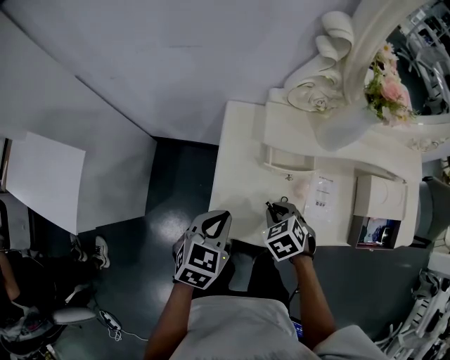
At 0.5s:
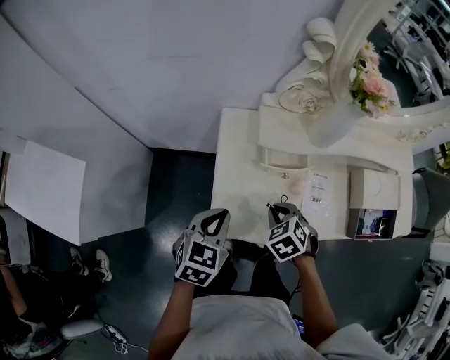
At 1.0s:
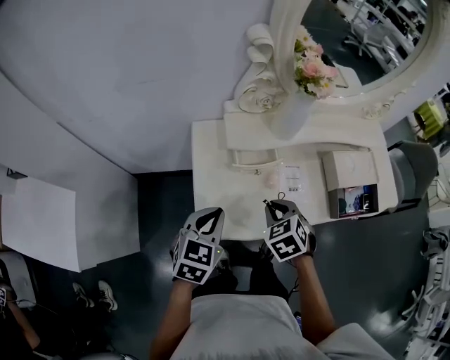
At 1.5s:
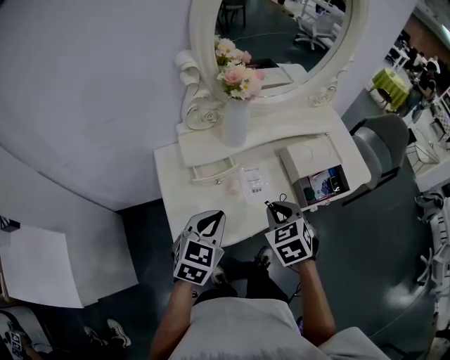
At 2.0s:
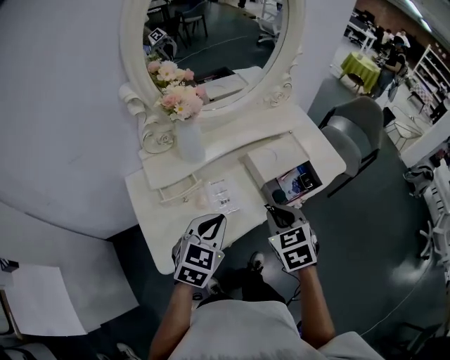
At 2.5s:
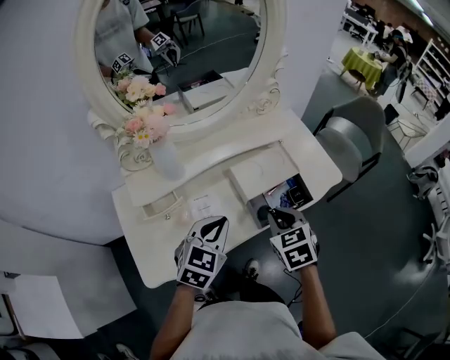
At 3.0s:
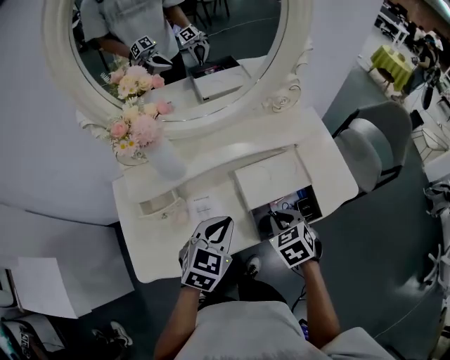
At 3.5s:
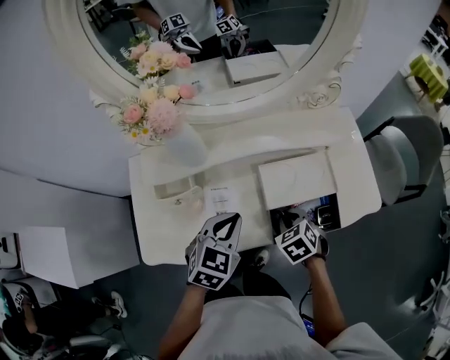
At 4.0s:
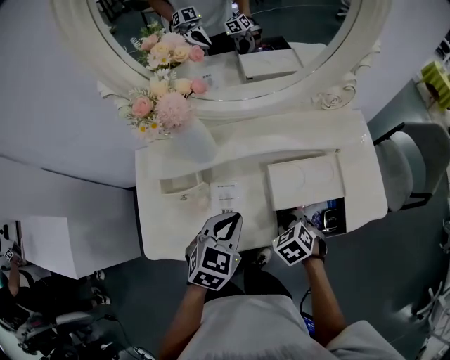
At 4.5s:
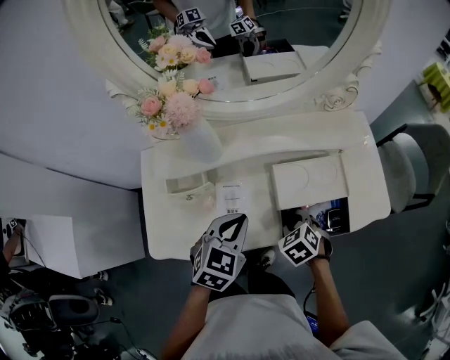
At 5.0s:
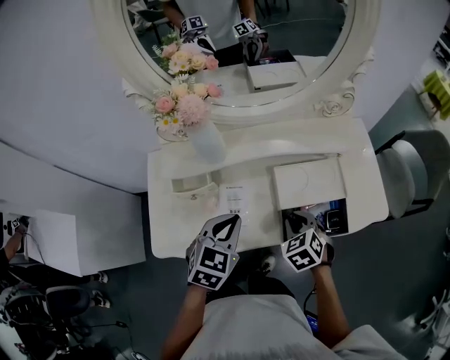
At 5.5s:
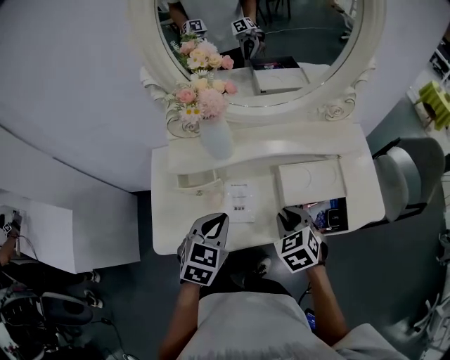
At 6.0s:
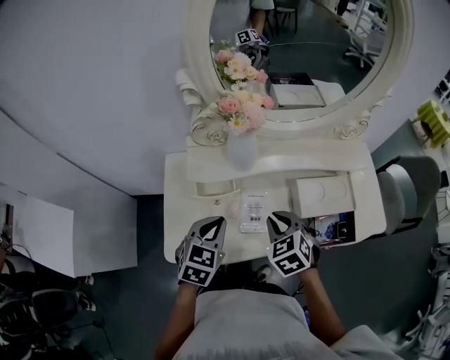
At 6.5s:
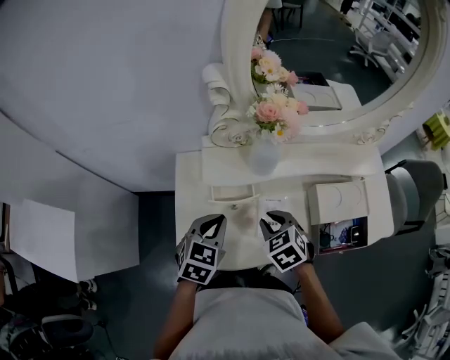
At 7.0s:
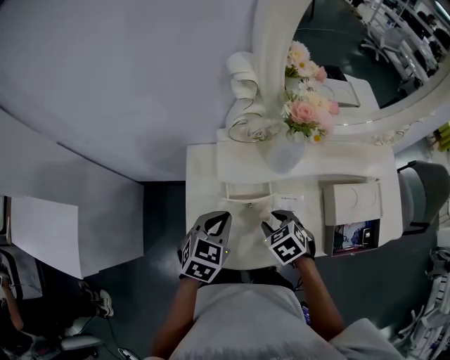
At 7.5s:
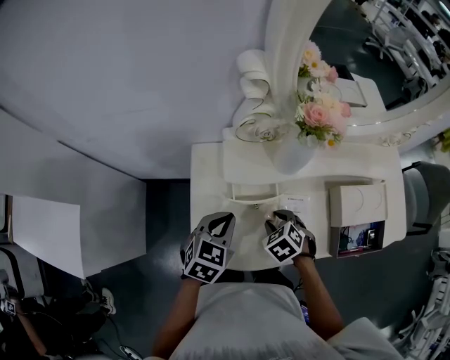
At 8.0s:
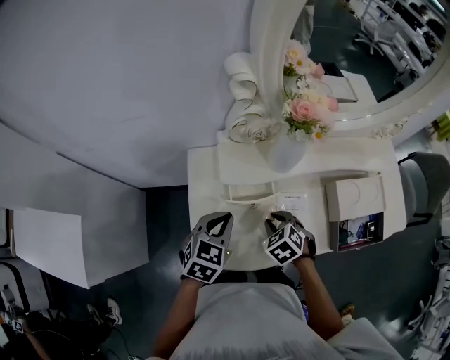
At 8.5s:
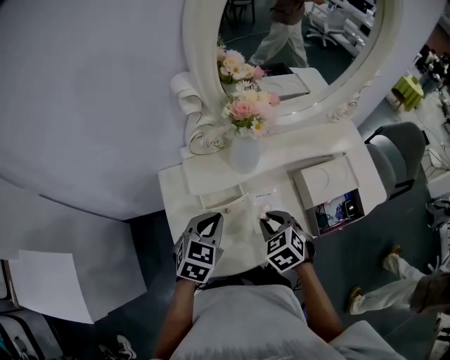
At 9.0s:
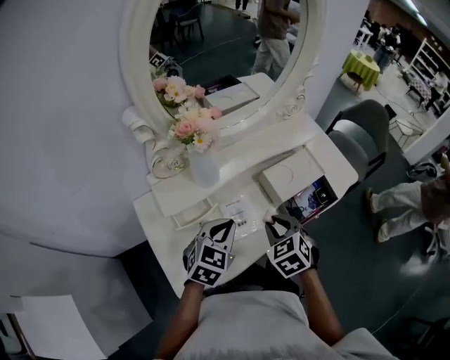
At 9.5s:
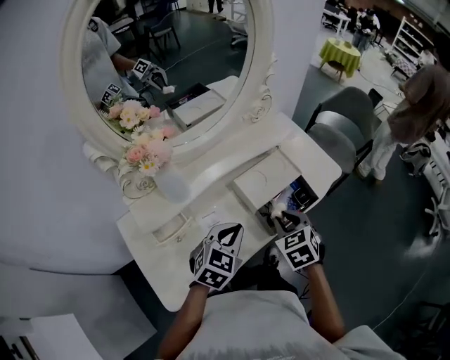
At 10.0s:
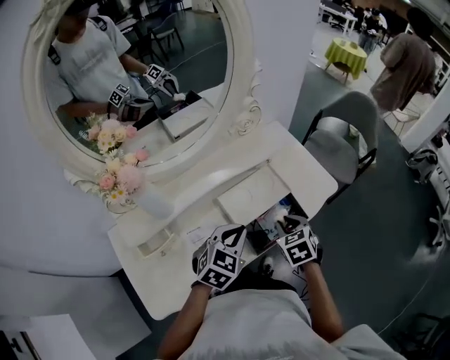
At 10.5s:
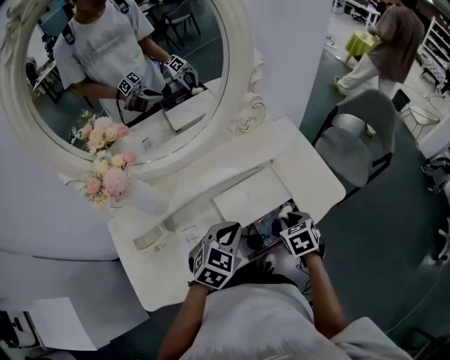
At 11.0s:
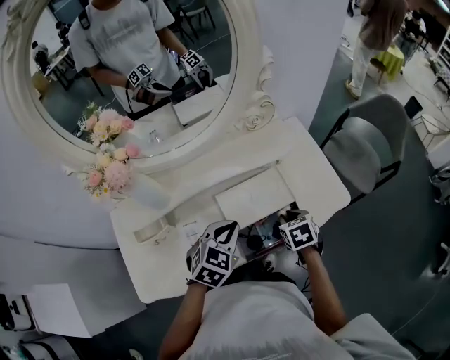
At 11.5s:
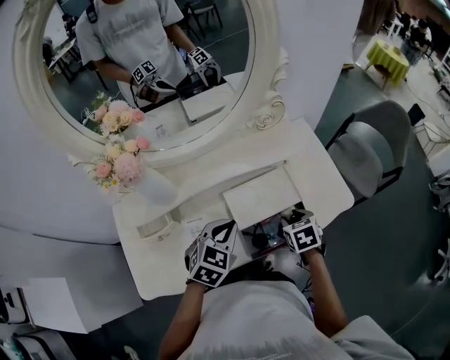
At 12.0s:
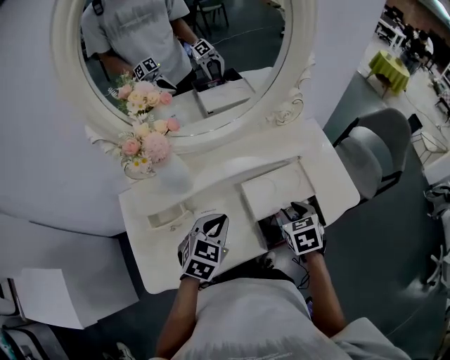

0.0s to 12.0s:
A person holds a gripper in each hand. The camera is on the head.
0.0s to 2.0s: The right gripper ends up some 35 cm from where it was, and turns by some 50 degrees. Meanwhile the left gripper moves roughly 25 cm, and rotates approximately 40 degrees.
2.0s to 4.0s: The right gripper travels downward and forward by approximately 25 cm, and turns by about 40 degrees. The left gripper is displaced forward, downward and to the right by about 15 cm, and turns by approximately 20 degrees.
4.0s to 6.0s: The right gripper shifts about 20 cm to the left and upward. The left gripper shifts roughly 15 cm to the left.
6.0s to 8.0s: The right gripper travels downward and to the left by roughly 15 cm; the left gripper heads to the left, covering roughly 10 cm.
8.0s to 10.0s: The left gripper ends up roughly 40 cm from where it was, and changes its angle by some 40 degrees, while the right gripper moves some 40 cm, and turns by roughly 50 degrees.
10.0s to 12.0s: The right gripper is displaced to the left by some 5 cm, while the left gripper goes approximately 10 cm to the left, and turns by some 20 degrees.

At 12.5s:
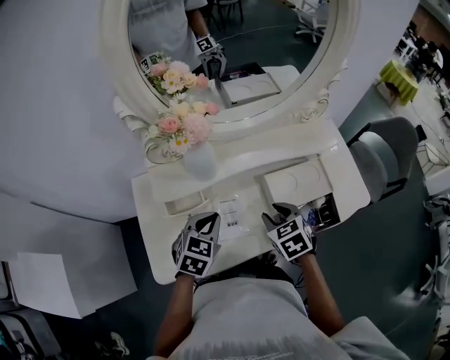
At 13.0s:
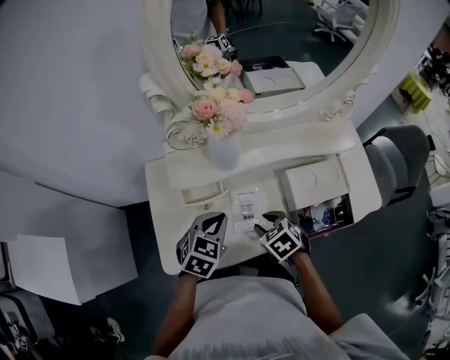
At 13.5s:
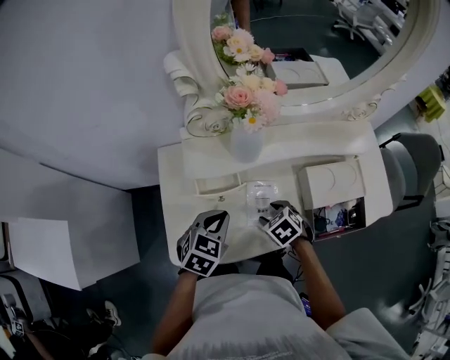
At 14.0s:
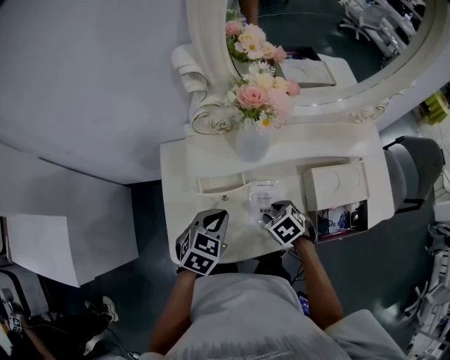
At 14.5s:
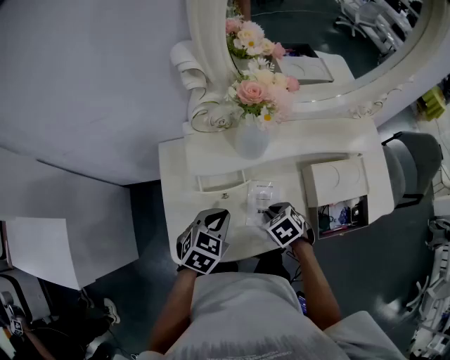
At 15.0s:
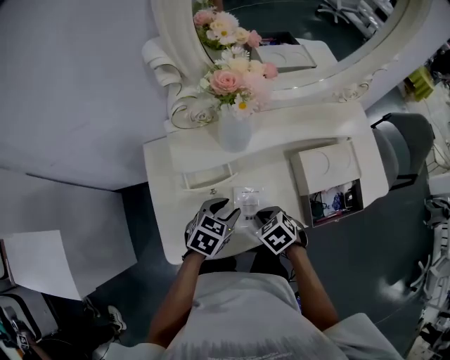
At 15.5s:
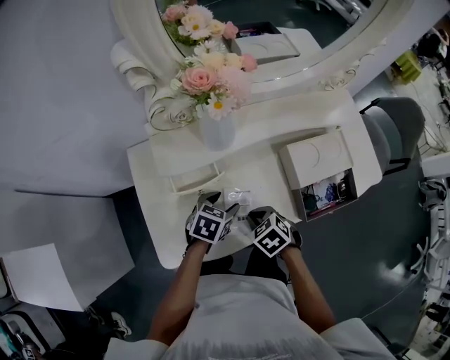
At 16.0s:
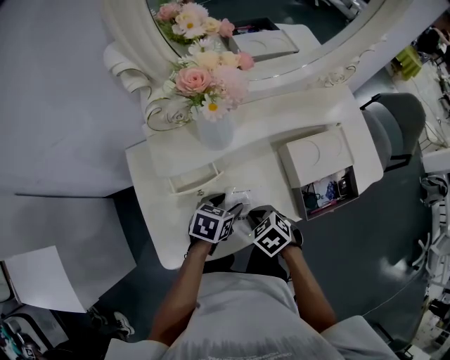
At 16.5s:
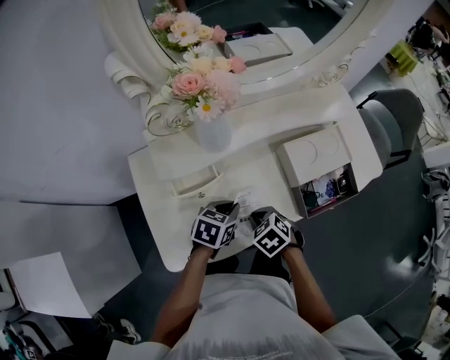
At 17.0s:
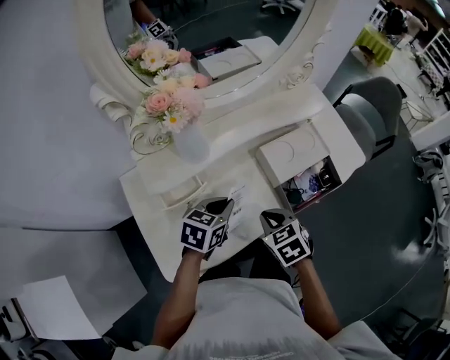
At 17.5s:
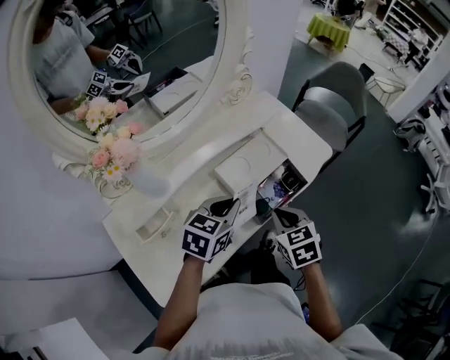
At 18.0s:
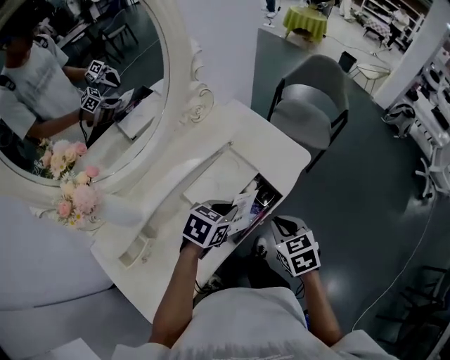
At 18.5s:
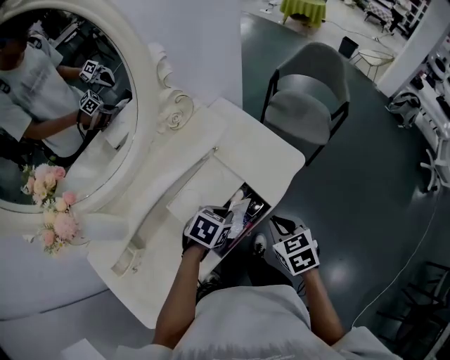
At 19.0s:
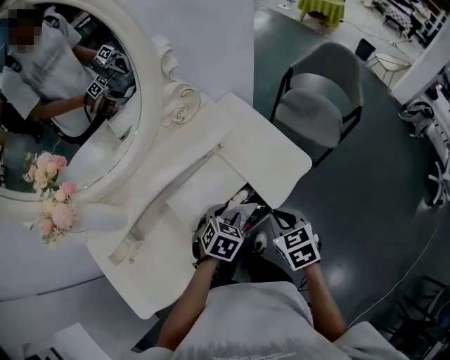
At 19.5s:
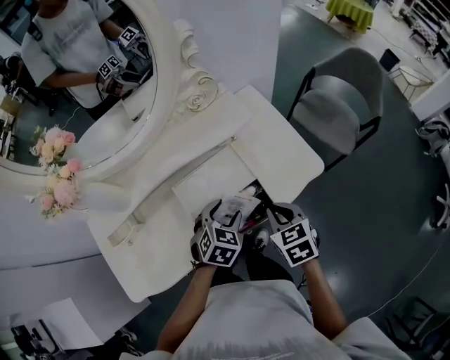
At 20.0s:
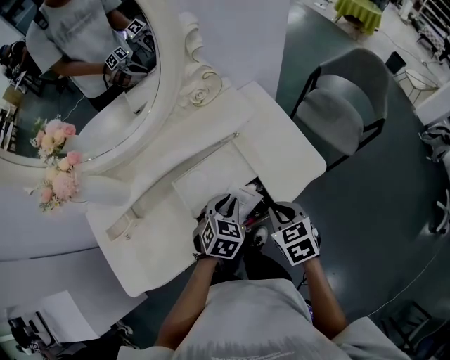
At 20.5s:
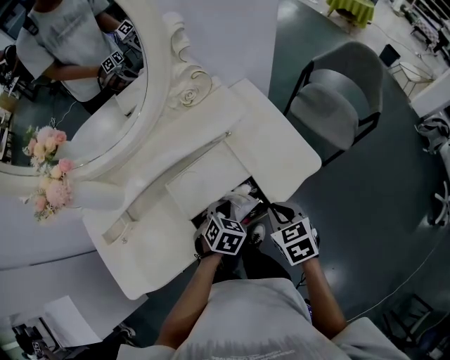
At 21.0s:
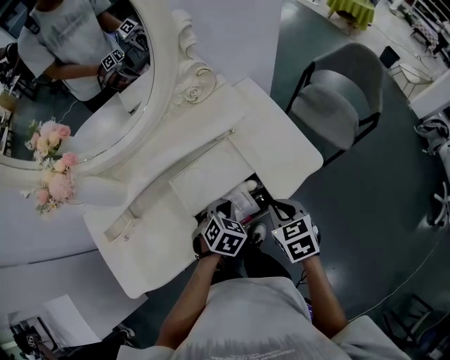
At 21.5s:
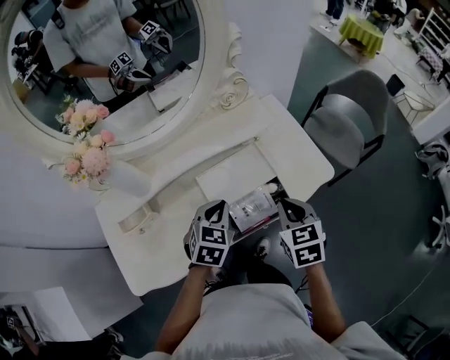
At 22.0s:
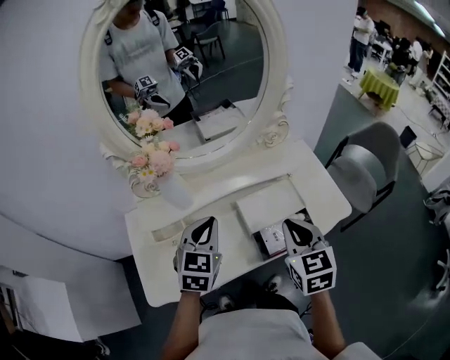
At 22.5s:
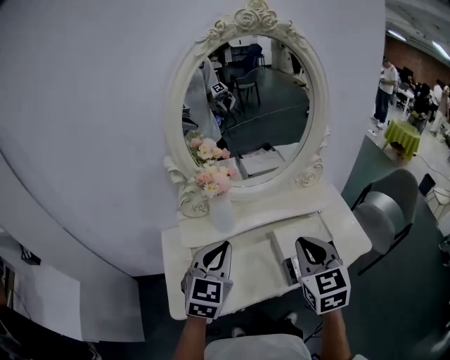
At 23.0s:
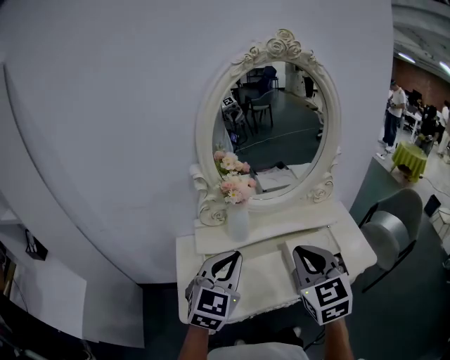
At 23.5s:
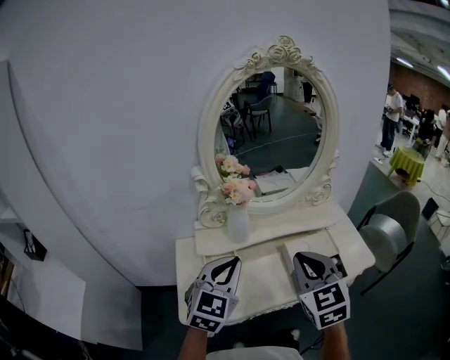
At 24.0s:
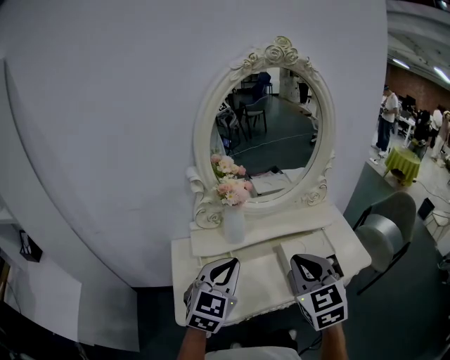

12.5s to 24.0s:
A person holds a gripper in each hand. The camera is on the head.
12.5s to 14.5s: The left gripper heads to the left, covering about 10 cm. The right gripper travels to the left and downward by some 15 cm, and changes its angle by approximately 20 degrees.
14.5s to 16.5s: The left gripper shifts roughly 10 cm to the right and downward, swivels roughly 20 degrees, and opens and closes again. Meanwhile the right gripper is displaced backward by about 5 cm.
16.5s to 18.5s: The right gripper shifts by approximately 40 cm, and swivels some 50 degrees, while the left gripper reaches about 15 cm upward, then returns, and turns by roughly 40 degrees.
18.5s to 20.0s: The right gripper moves approximately 5 cm. Meanwhile the left gripper rotates about 30 degrees, and opens, then closes again.
20.0s to 22.0s: The left gripper shifts approximately 30 cm to the left and upward, and turns by roughly 30 degrees. The right gripper goes about 25 cm upward and to the left, and turns by approximately 20 degrees.
22.0s to 24.0s: The left gripper heads upward, backward and to the left, covering roughly 20 cm, while the right gripper is displaced to the left, upward and backward by about 20 cm, and turns by some 20 degrees.

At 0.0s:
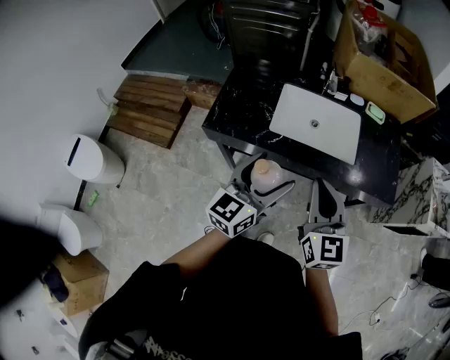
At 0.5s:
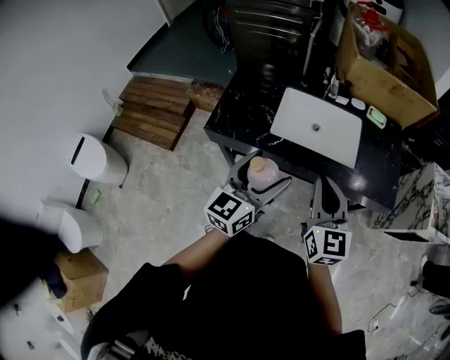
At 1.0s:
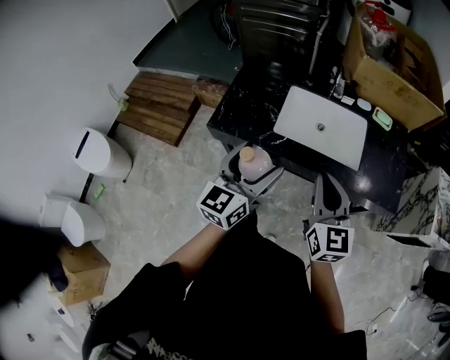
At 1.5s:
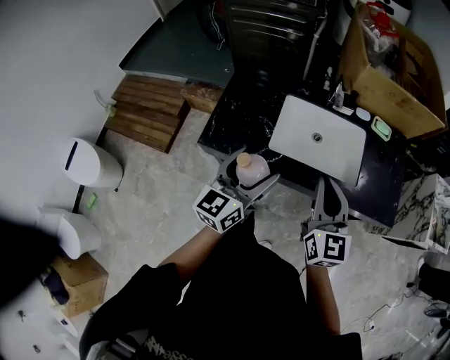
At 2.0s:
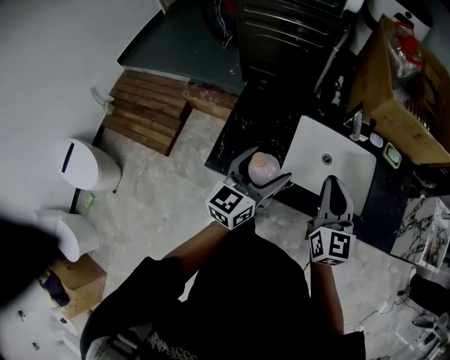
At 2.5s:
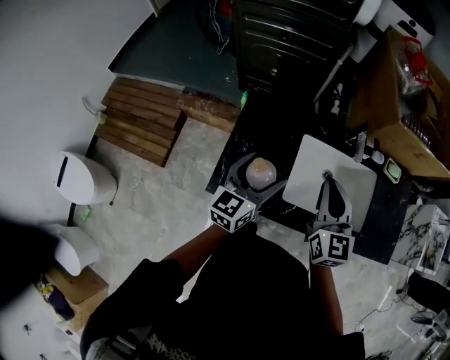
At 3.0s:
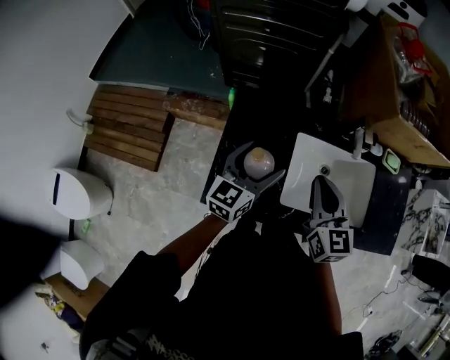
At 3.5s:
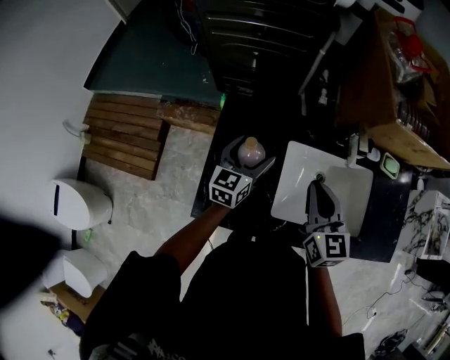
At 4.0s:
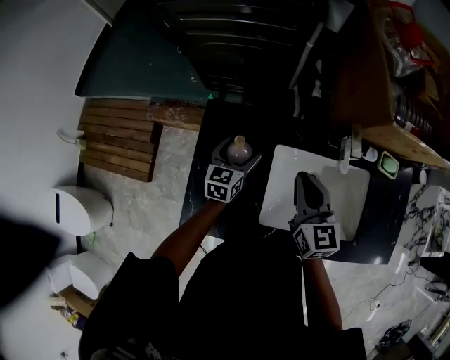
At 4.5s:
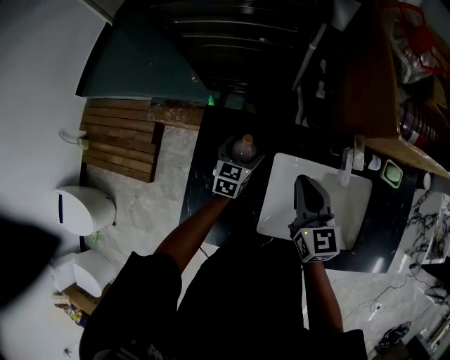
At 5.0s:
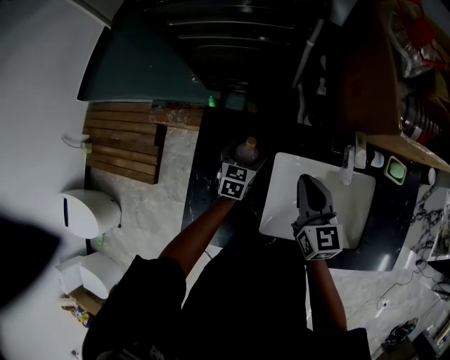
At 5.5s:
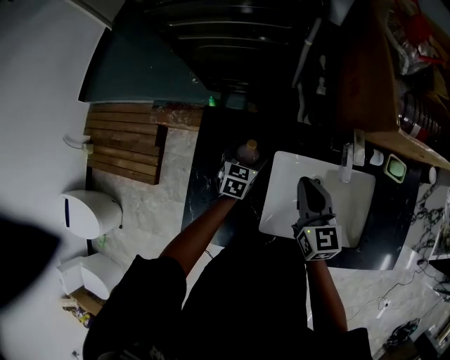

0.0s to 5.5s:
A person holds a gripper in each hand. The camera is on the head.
0.0s to 2.0s: The left gripper is displaced forward and to the left by approximately 25 cm. Meanwhile the right gripper goes roughly 20 cm forward.
2.0s to 3.5s: The right gripper goes some 15 cm forward, downward and to the left. The left gripper shifts some 25 cm forward and downward.
3.5s to 5.5s: The right gripper moves forward and downward, roughly 10 cm, while the left gripper travels downward and forward by some 15 cm, and swivels about 30 degrees.
